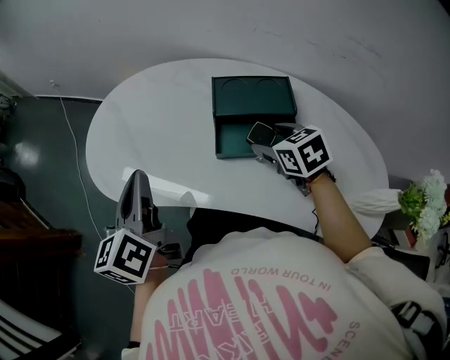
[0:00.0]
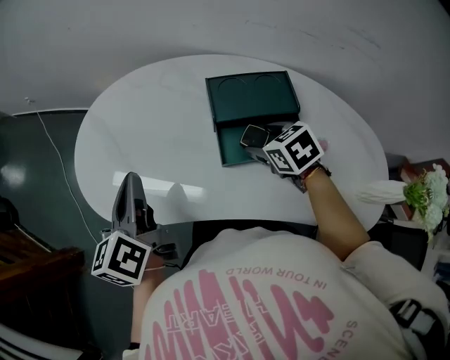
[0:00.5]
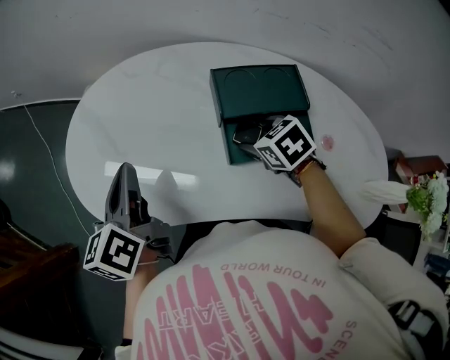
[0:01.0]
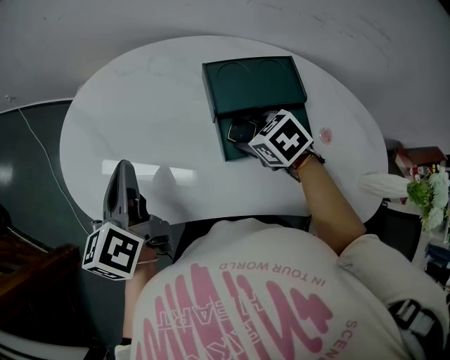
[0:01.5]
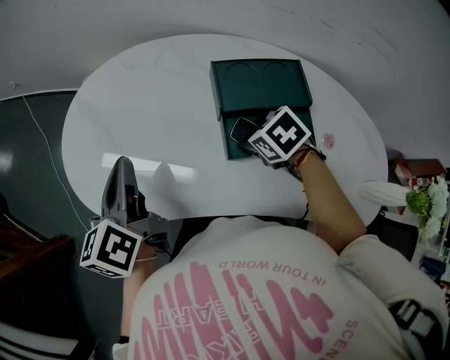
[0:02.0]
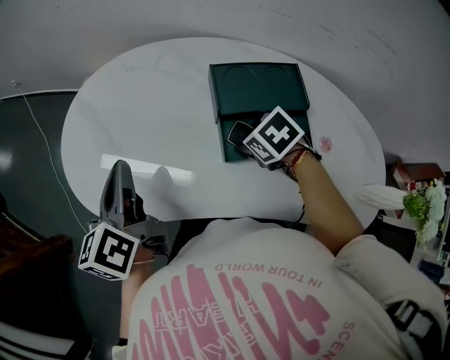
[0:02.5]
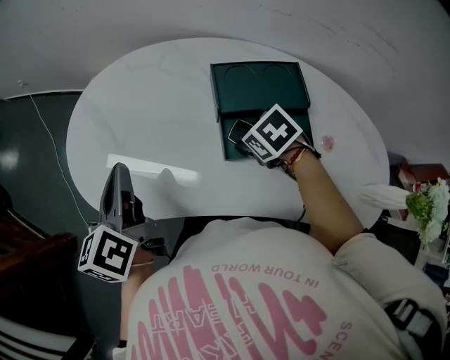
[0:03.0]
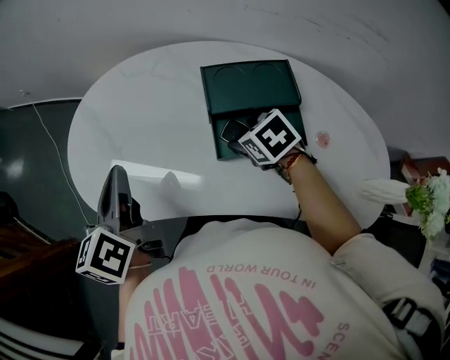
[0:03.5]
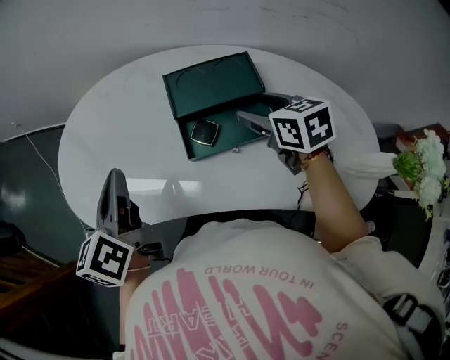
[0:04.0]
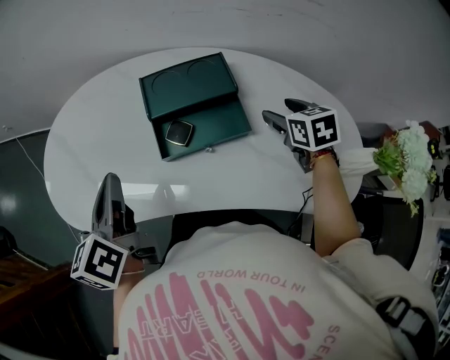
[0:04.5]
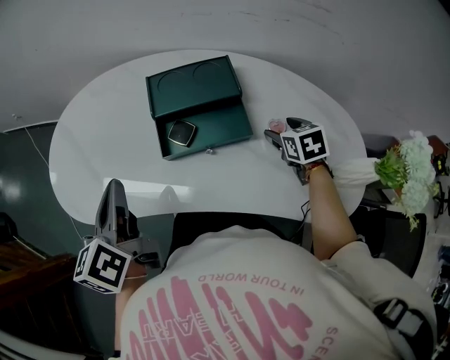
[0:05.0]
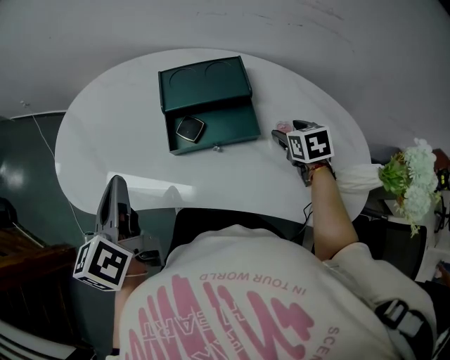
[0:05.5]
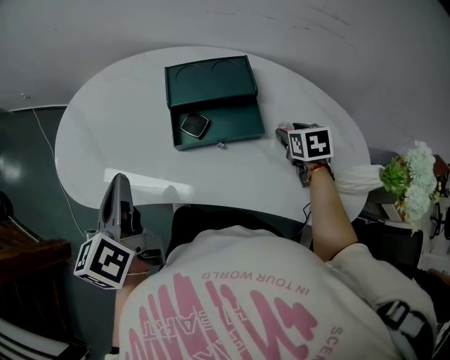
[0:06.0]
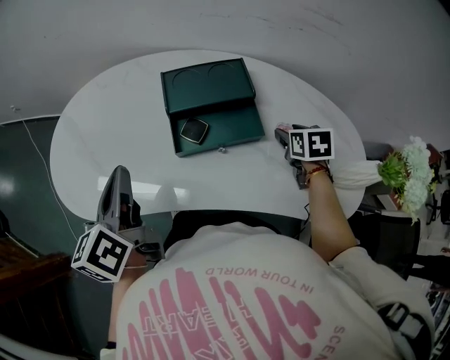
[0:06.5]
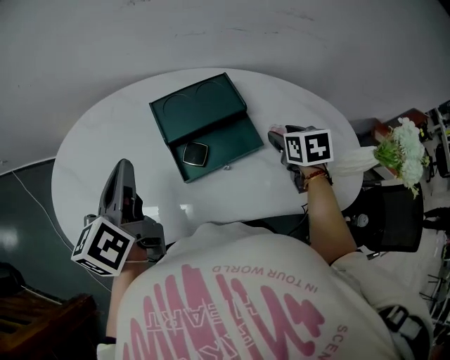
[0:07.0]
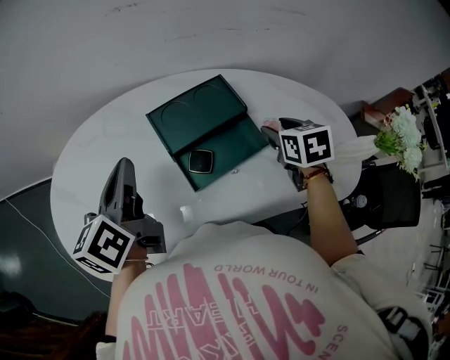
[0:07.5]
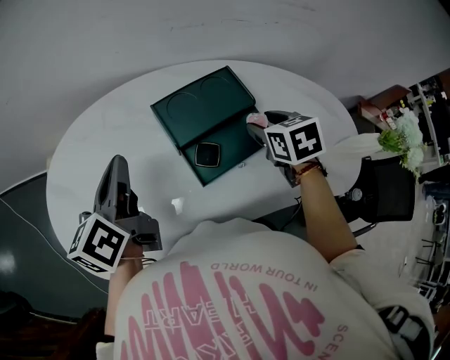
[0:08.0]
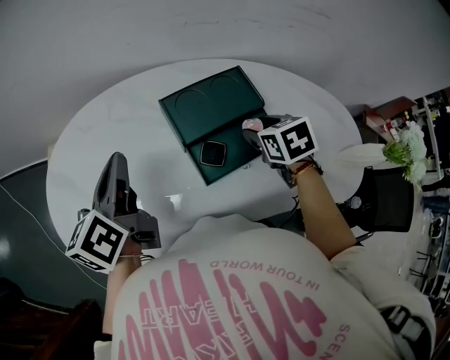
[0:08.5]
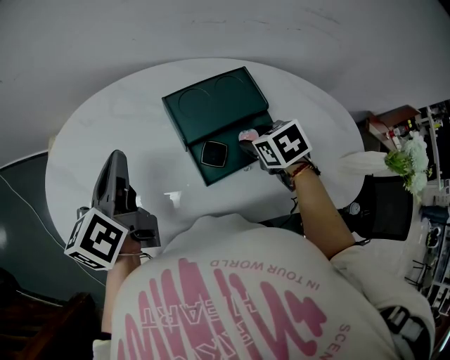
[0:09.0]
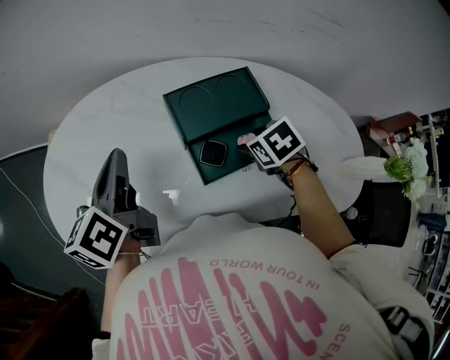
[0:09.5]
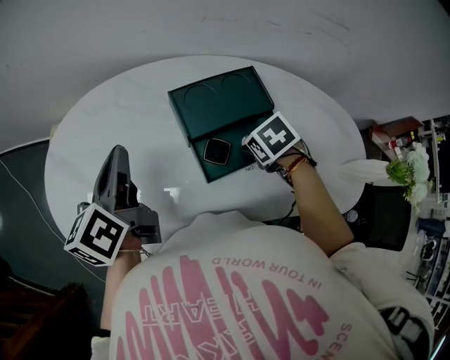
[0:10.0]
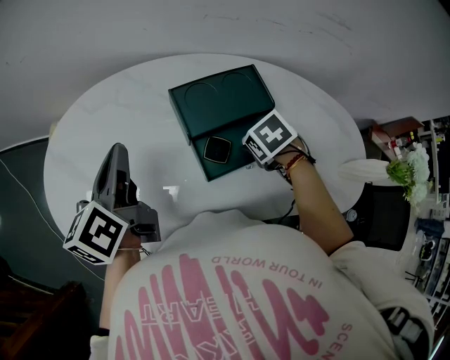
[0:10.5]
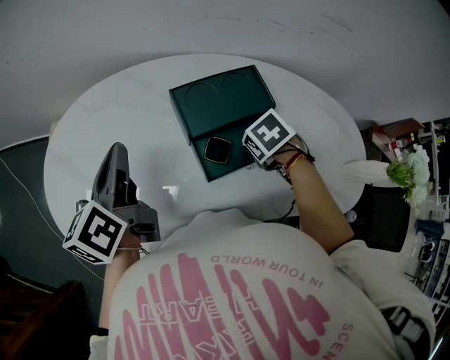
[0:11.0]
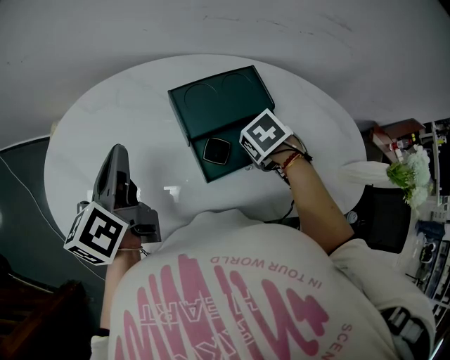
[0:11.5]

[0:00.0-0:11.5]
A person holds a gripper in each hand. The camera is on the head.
0:00.0 to 0:02.0: The right gripper goes approximately 10 cm downward, and turns by some 20 degrees. The left gripper moves forward and downward, some 15 cm.
0:02.0 to 0:04.0: The right gripper is displaced to the right and upward by about 15 cm, and swivels approximately 40 degrees. The left gripper heads to the right and backward, covering roughly 10 cm.
0:04.0 to 0:06.0: The left gripper heads backward, covering approximately 10 cm. Meanwhile the right gripper moves to the right and downward, roughly 20 cm, and rotates some 20 degrees.
0:06.0 to 0:07.5: The right gripper travels upward and to the left by approximately 10 cm. The left gripper is displaced forward by some 20 cm, and turns by roughly 30 degrees.
0:07.5 to 0:09.5: The left gripper goes about 5 cm to the left. Meanwhile the right gripper goes some 15 cm to the left and downward, and swivels approximately 30 degrees.
0:09.5 to 0:11.5: There are only small adjustments of the grippers.

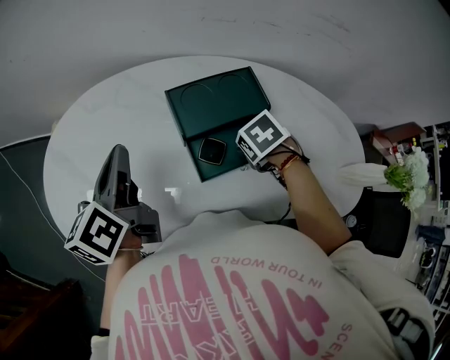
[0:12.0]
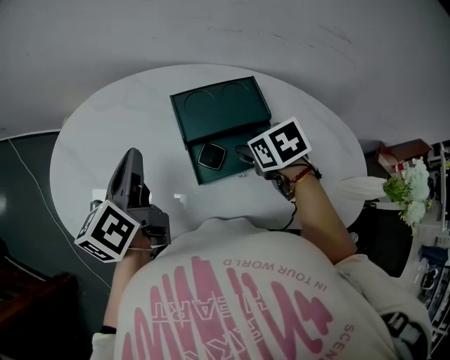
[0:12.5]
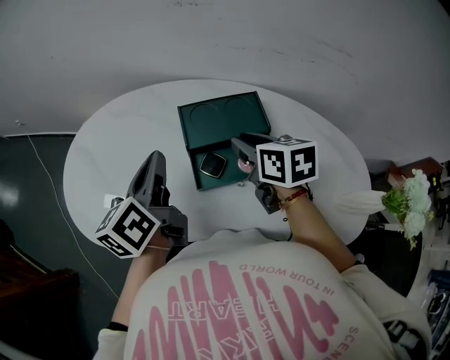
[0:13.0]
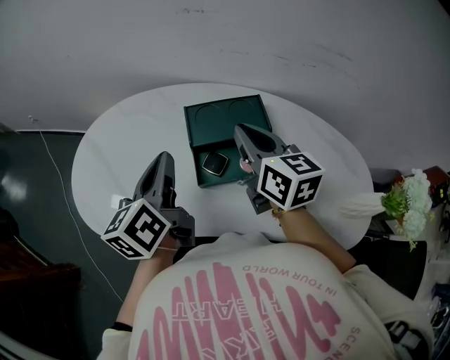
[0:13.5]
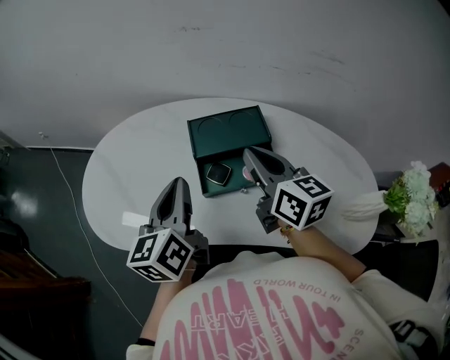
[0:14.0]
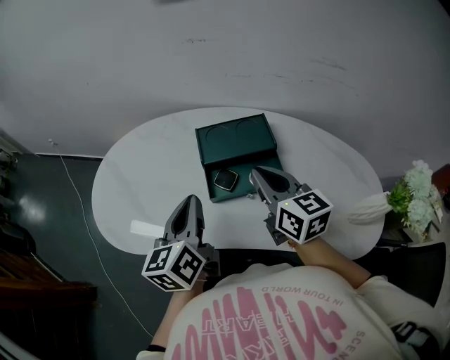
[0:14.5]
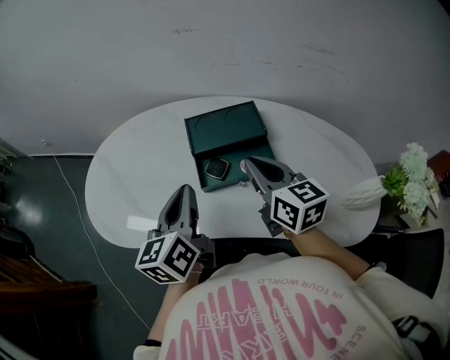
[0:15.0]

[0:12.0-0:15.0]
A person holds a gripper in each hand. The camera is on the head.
0:12.0 to 0:13.5: The left gripper shifts by approximately 10 cm. The right gripper is displaced upward by roughly 20 cm, angles its fingers upward, by approximately 70 degrees, and closes.
0:13.5 to 0:15.0: The two grippers go roughly 10 cm backward.

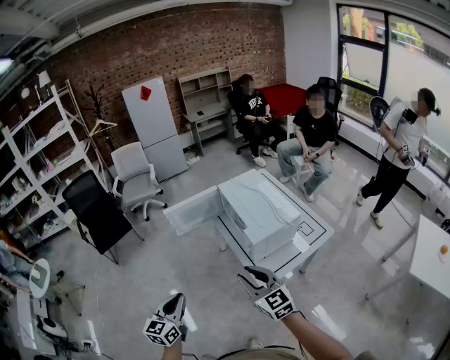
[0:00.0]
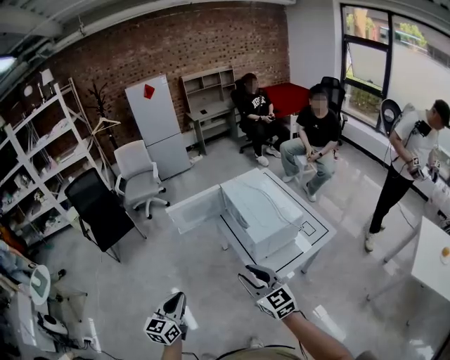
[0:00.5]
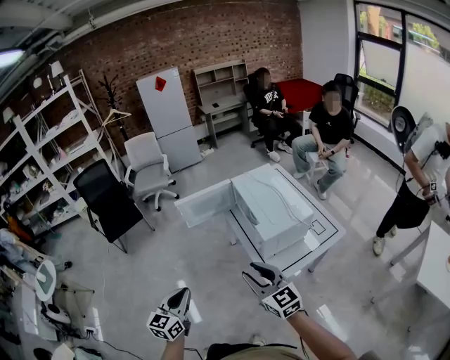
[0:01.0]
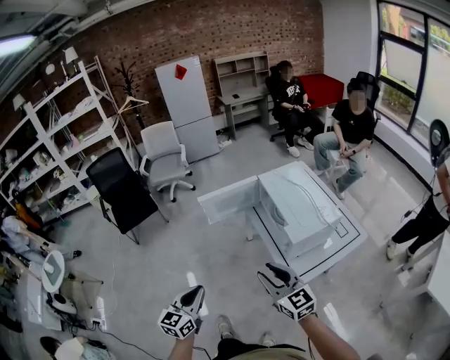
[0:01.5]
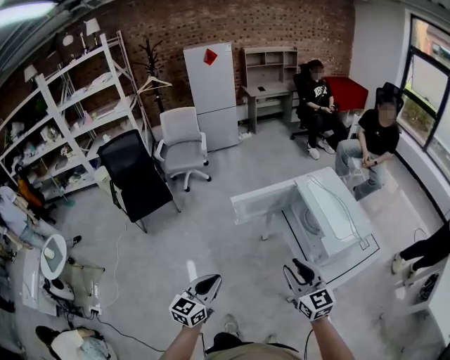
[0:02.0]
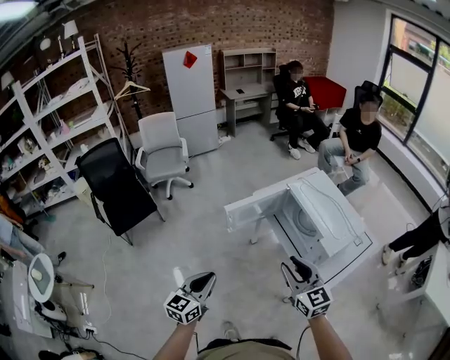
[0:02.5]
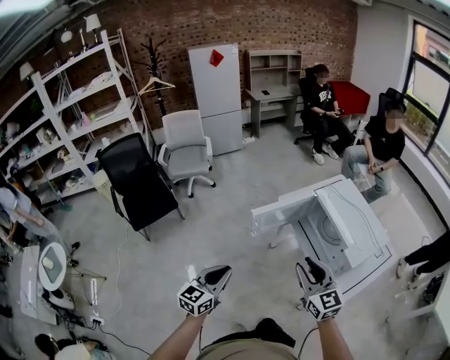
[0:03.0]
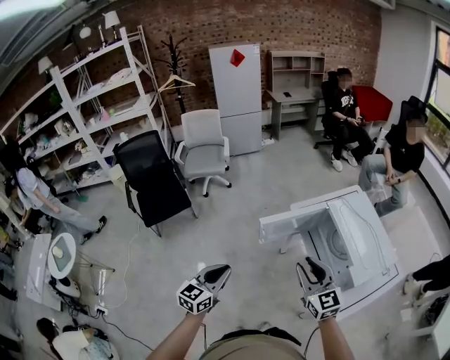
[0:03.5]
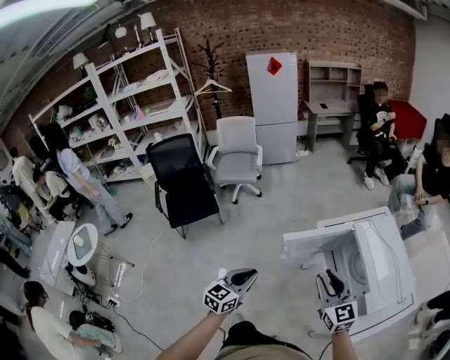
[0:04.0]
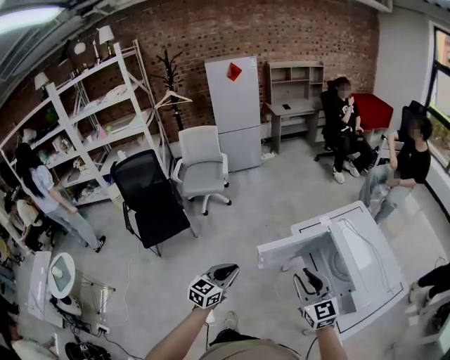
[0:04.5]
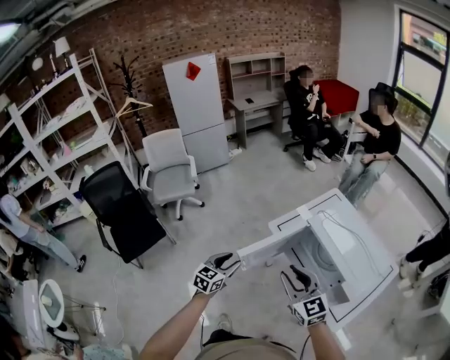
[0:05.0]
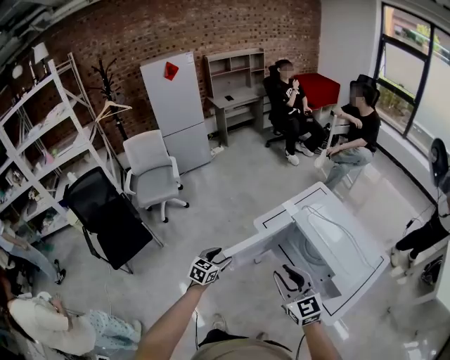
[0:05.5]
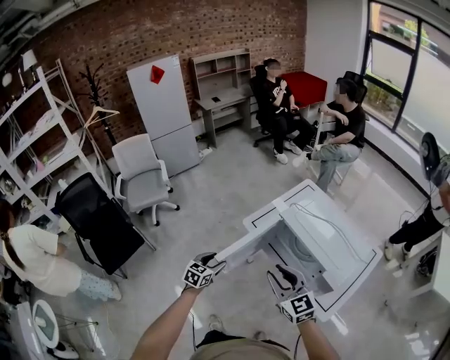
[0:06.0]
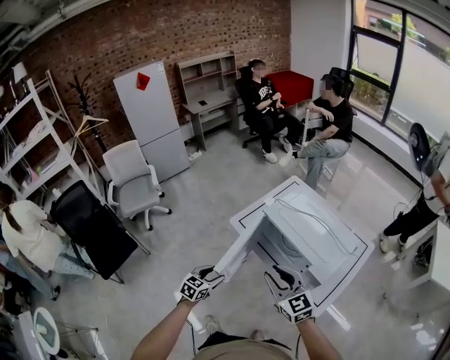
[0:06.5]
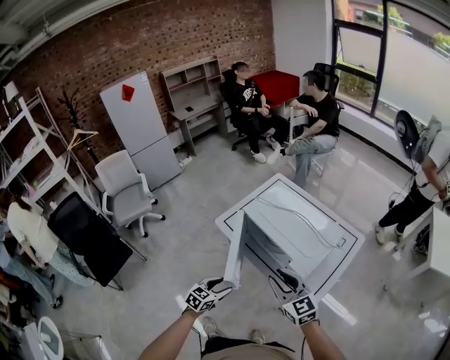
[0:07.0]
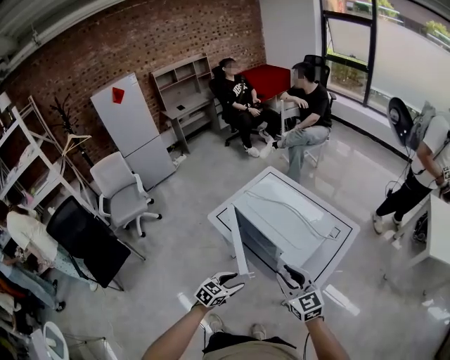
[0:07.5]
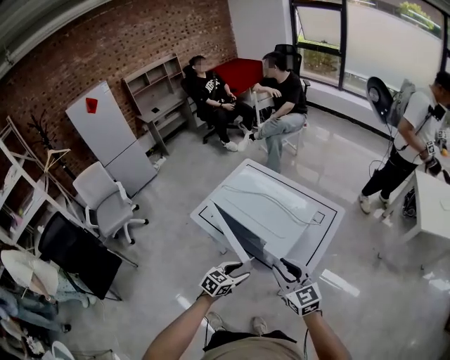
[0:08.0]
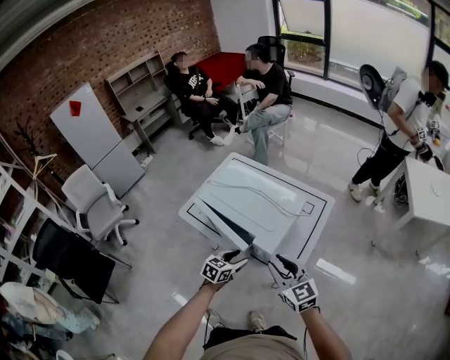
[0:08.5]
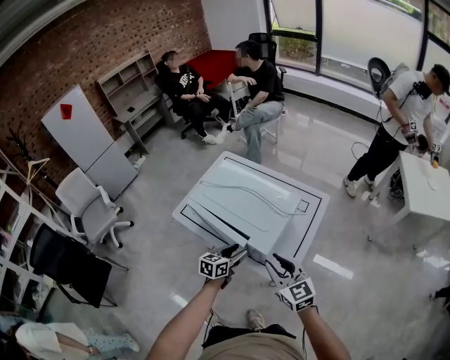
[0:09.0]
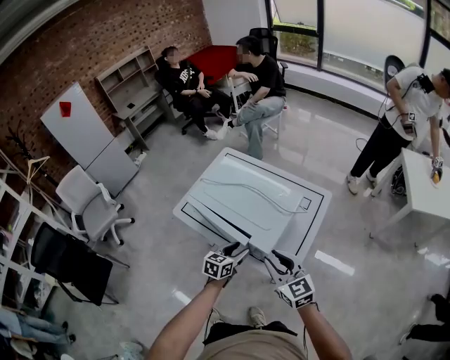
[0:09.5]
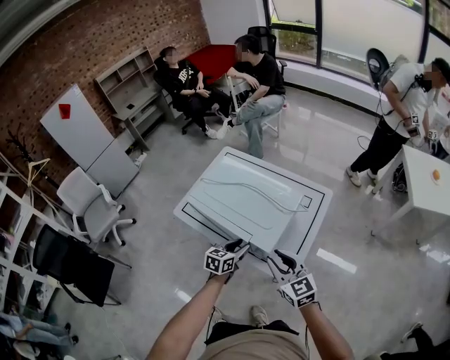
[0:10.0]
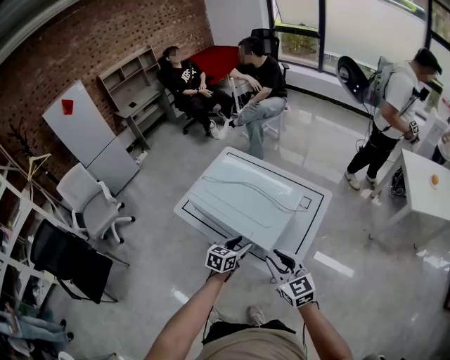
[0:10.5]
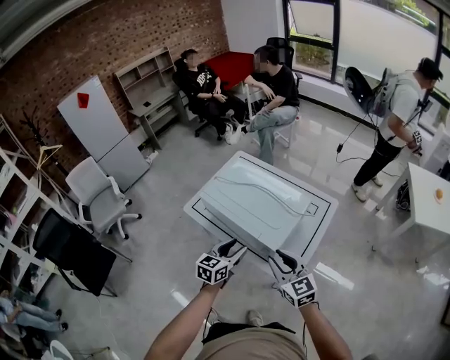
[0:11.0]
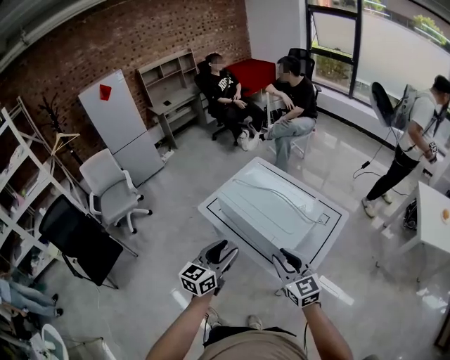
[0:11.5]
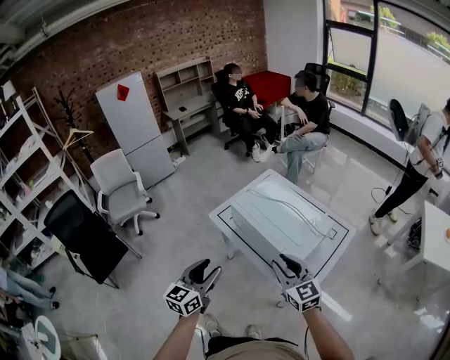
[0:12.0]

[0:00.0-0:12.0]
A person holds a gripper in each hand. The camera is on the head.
0:00.0 to 0:02.0: Both grippers move to the left and forward, approximately 20 cm.
0:02.0 to 0:04.0: The right gripper travels forward and to the left by approximately 20 cm. Meanwhile the left gripper goes approximately 20 cm forward.
0:04.0 to 0:06.0: The left gripper shifts some 25 cm forward and downward, changes its angle by some 30 degrees, and opens its fingers. Meanwhile the right gripper travels forward by approximately 5 cm.
0:06.0 to 0:08.0: Both grippers travel together to the right, about 35 cm. The left gripper rotates roughly 30 degrees.
0:08.0 to 0:10.0: The left gripper shifts approximately 10 cm forward.
0:10.0 to 0:12.0: The right gripper is displaced to the left and upward by about 15 cm, while the left gripper moves upward, to the left and backward, roughly 35 cm, and changes its angle by some 40 degrees.
